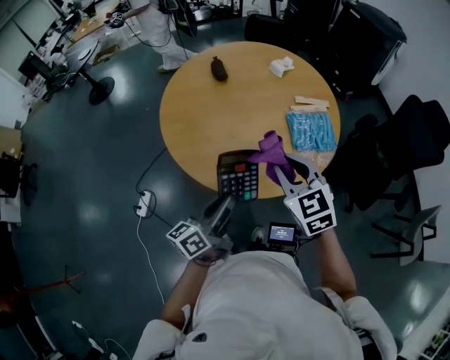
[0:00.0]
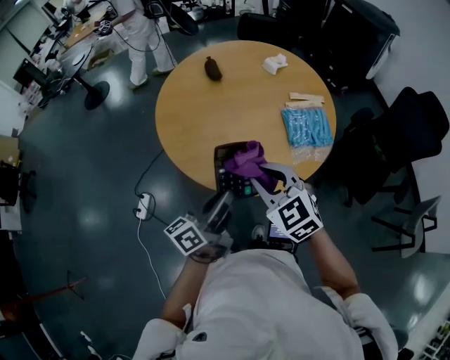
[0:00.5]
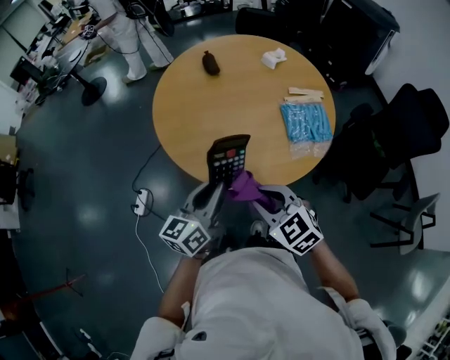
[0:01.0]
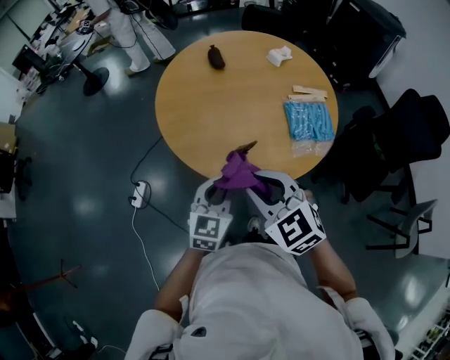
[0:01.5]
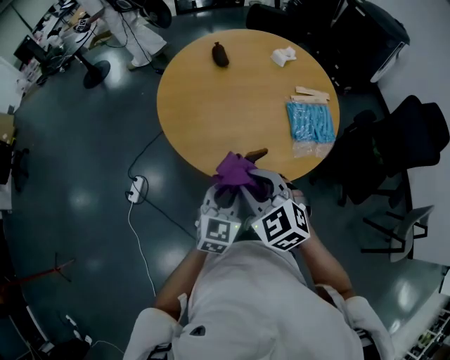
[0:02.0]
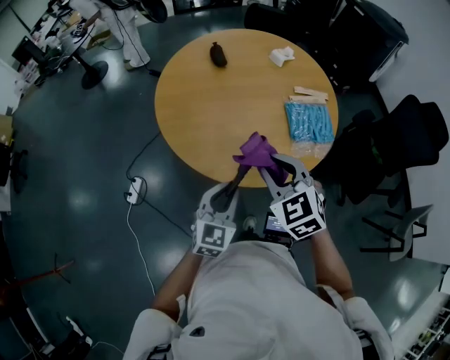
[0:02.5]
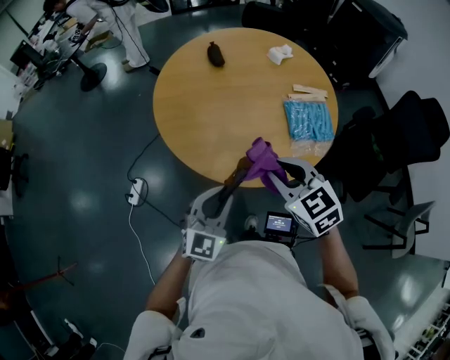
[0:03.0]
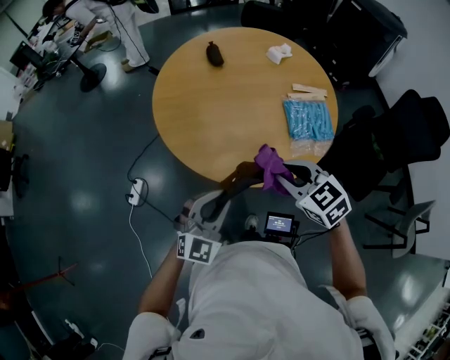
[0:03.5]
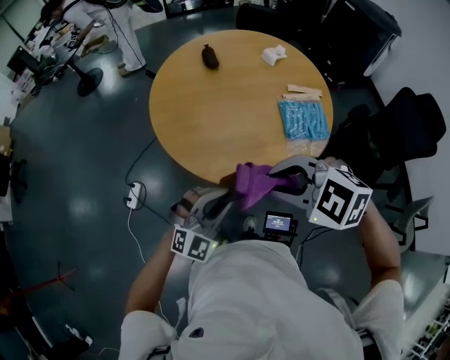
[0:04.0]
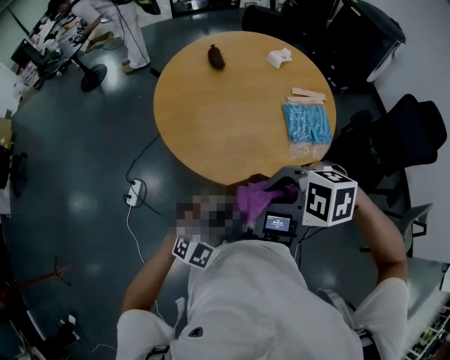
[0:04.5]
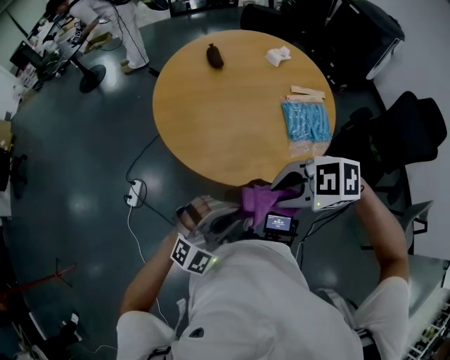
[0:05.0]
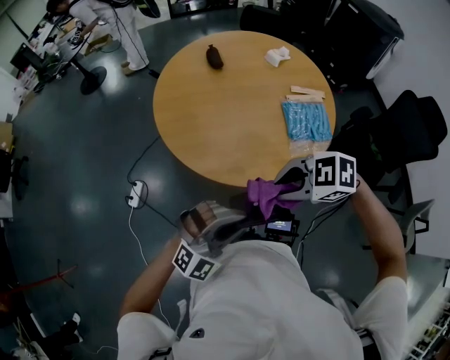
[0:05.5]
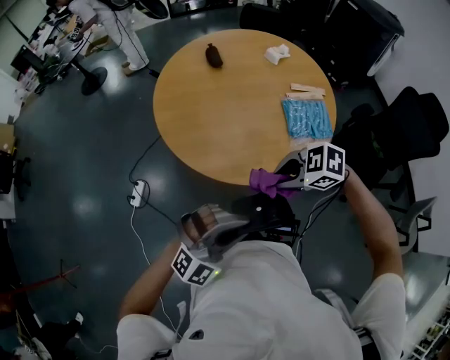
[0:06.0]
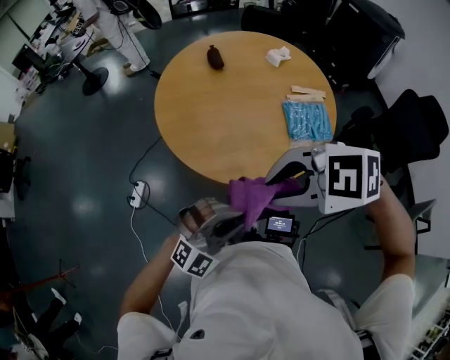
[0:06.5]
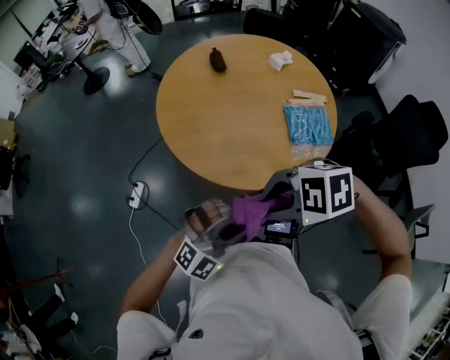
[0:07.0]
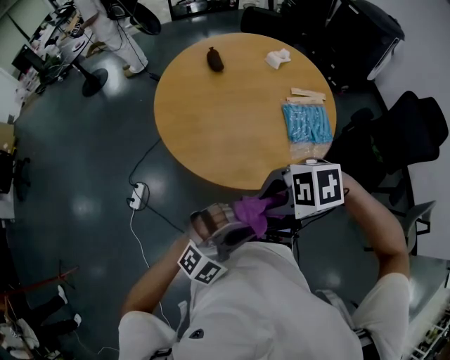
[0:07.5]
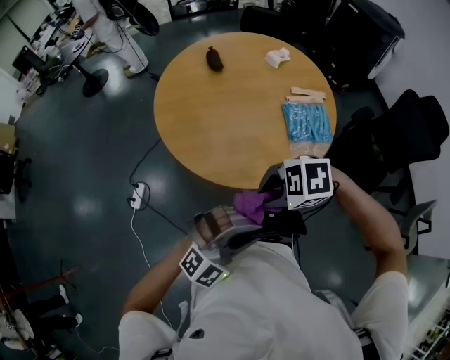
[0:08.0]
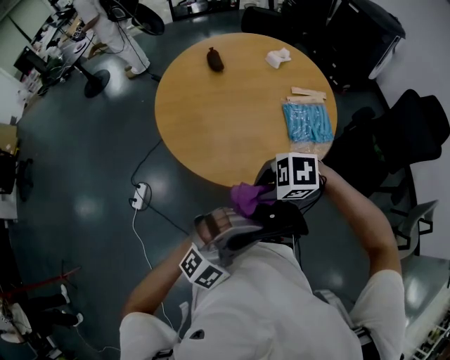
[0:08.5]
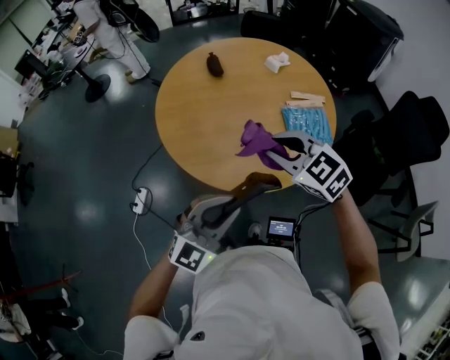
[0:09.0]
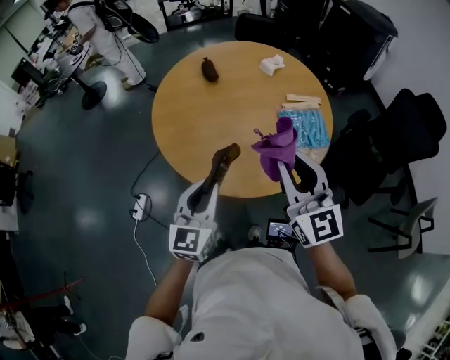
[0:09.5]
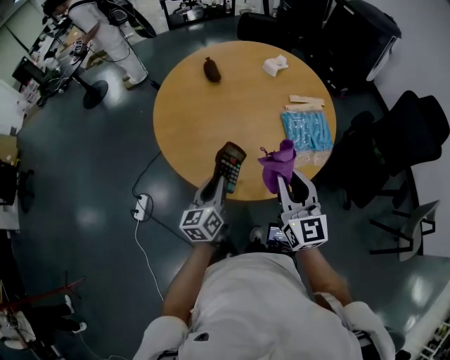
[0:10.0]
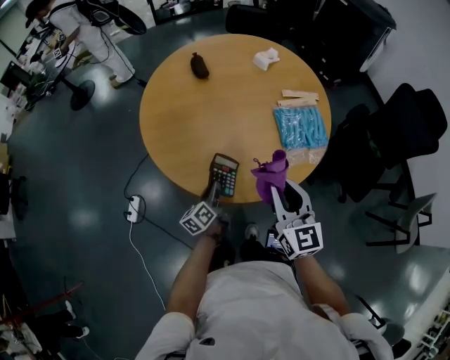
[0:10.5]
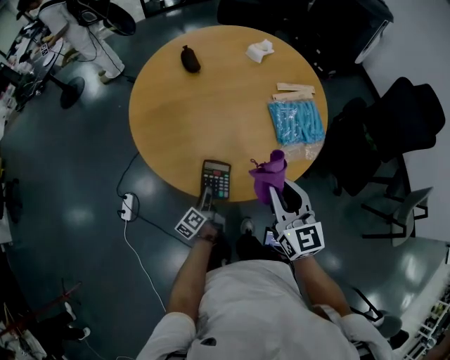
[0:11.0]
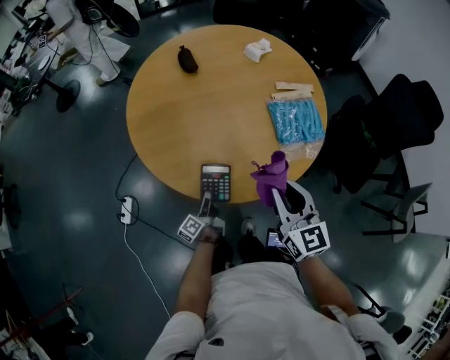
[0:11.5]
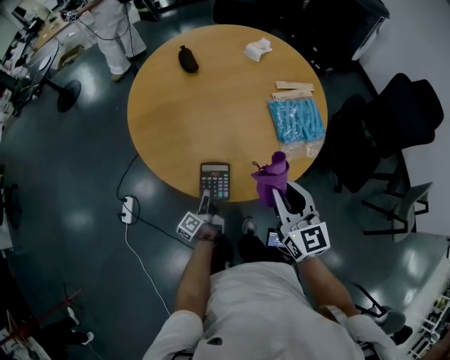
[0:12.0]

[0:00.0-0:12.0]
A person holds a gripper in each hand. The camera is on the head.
0:00.0 to 0:02.0: The left gripper twists approximately 50 degrees clockwise, seen from behind; the right gripper travels to the left and backward by about 10 cm.
0:02.0 to 0:04.0: The right gripper shifts about 10 cm upward and to the right, and changes its angle by roughly 30 degrees; the left gripper swivels some 40 degrees.
0:04.0 to 0:06.0: The right gripper travels downward by some 10 cm, and rotates some 30 degrees. Meanwhile the left gripper changes place by about 10 cm.
0:06.0 to 0:08.0: The right gripper goes upward and returns, some 15 cm each way.
0:08.0 to 0:10.0: The left gripper moves some 25 cm, and rotates around the line of its fingers by roughly 80 degrees, counterclockwise from behind, while the right gripper travels upward and back again, roughly 15 cm each way, and tips its fingers upward by some 50 degrees.
0:10.0 to 0:12.0: The left gripper moves downward, some 25 cm, and rotates around the line of its fingers by some 50 degrees, counterclockwise from behind, while the right gripper travels downward by about 5 cm.

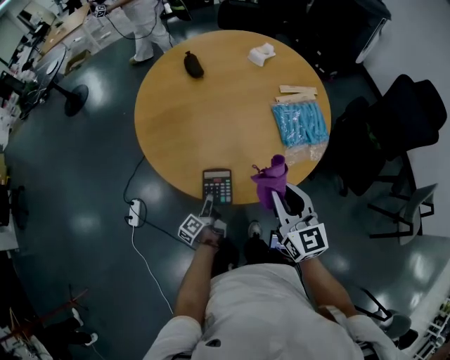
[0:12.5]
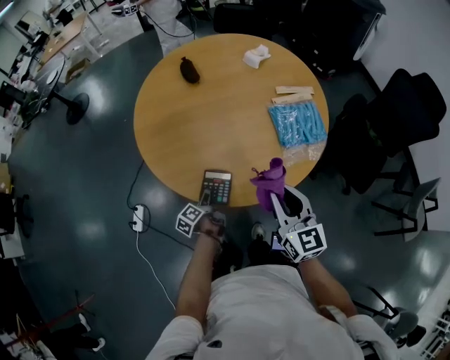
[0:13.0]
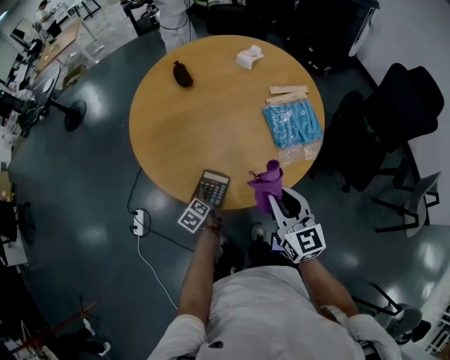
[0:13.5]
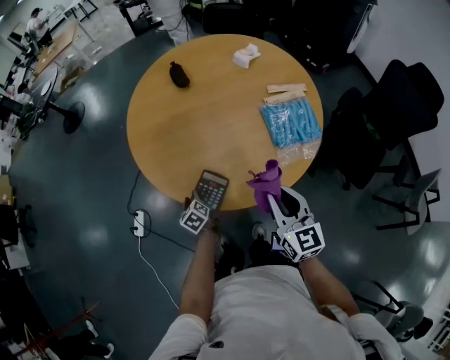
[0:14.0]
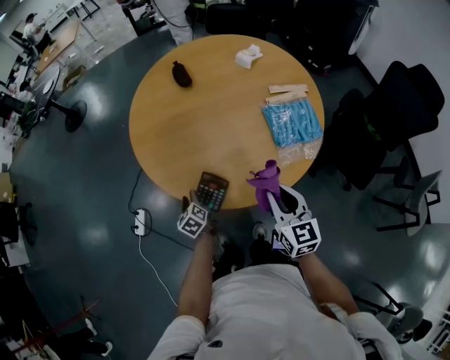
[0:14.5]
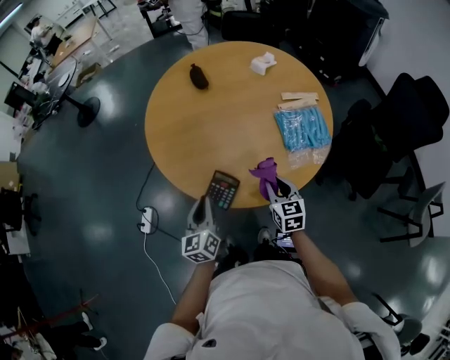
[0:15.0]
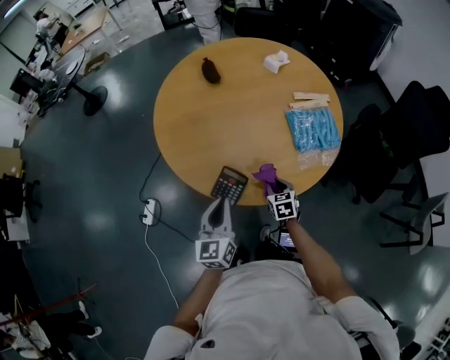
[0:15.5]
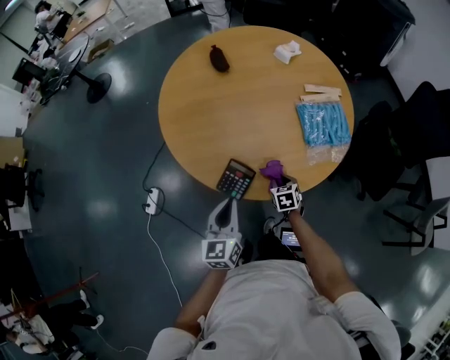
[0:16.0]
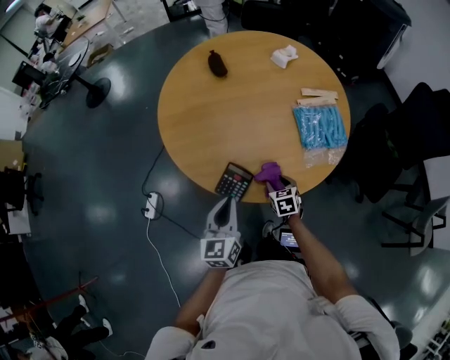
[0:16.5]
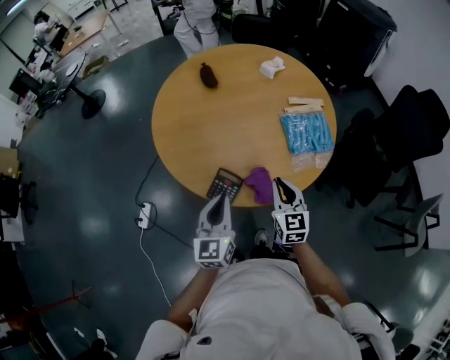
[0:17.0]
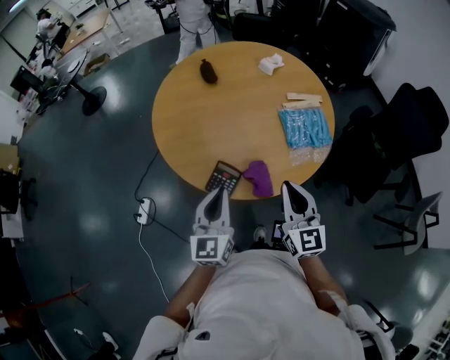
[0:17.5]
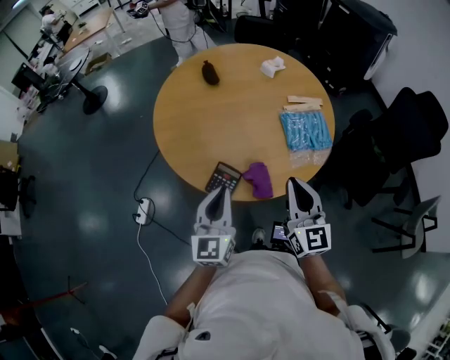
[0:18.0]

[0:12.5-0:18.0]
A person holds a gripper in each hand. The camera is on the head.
0:12.5 to 0:14.5: The right gripper ends up roughly 5 cm from where it was; the left gripper travels to the left by about 5 cm, and swivels roughly 50 degrees.
0:14.5 to 0:16.0: The left gripper travels upward, to the right and backward by about 20 cm, swivels some 40 degrees, and closes its fingers. The right gripper goes some 25 cm downward, and tilts its fingers approximately 40 degrees downward.
0:16.0 to 0:18.0: The right gripper goes about 35 cm upward, points its fingers approximately 50 degrees further upward, and opens, then closes again. The left gripper heads upward, covering some 10 cm.

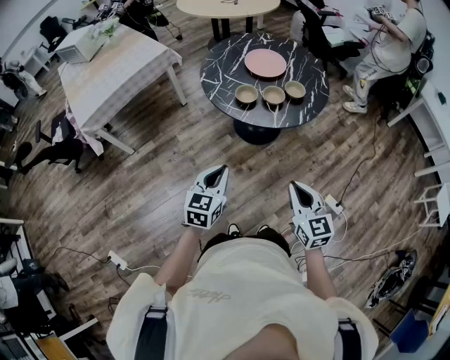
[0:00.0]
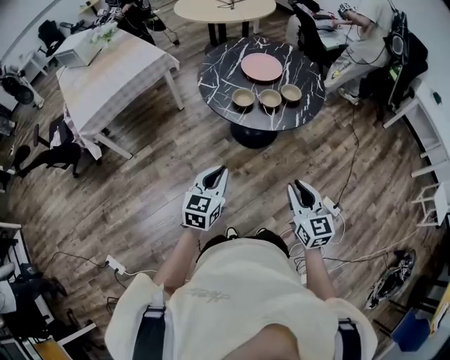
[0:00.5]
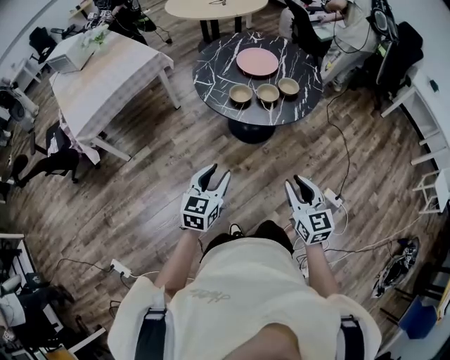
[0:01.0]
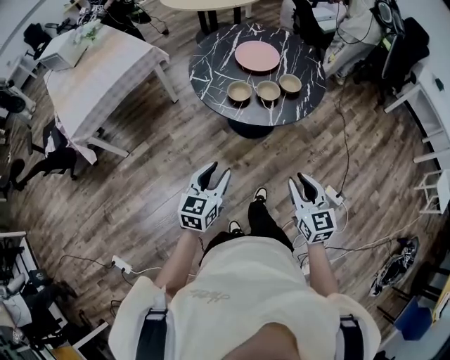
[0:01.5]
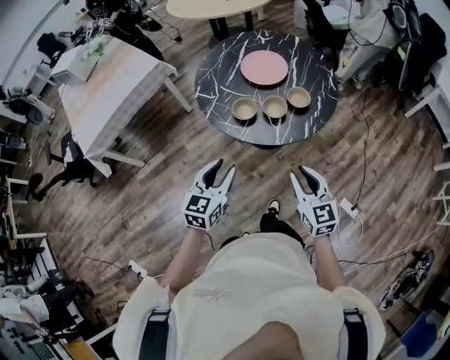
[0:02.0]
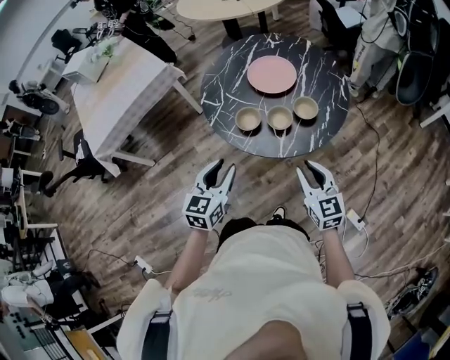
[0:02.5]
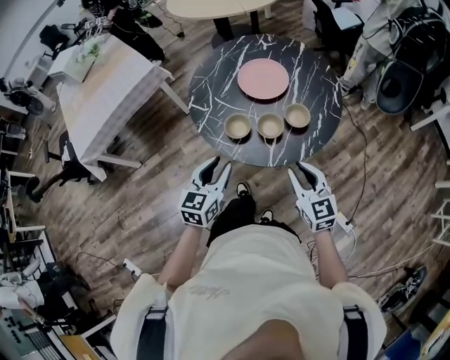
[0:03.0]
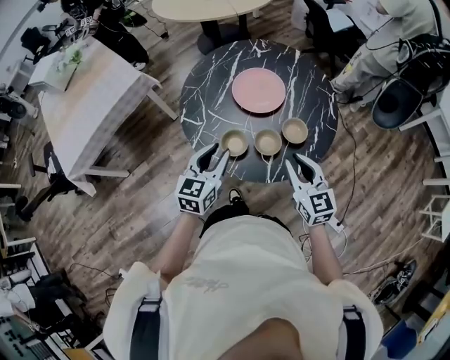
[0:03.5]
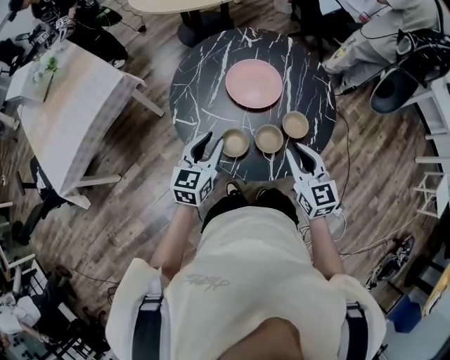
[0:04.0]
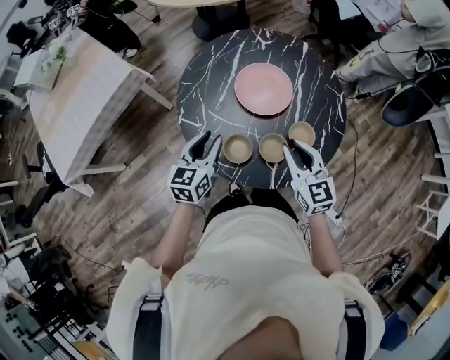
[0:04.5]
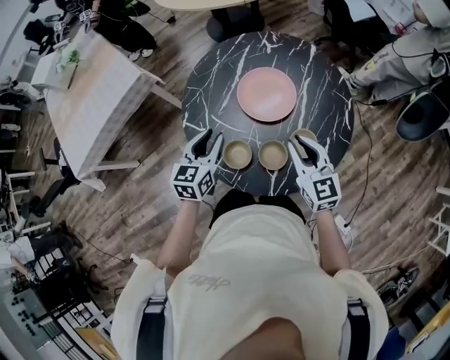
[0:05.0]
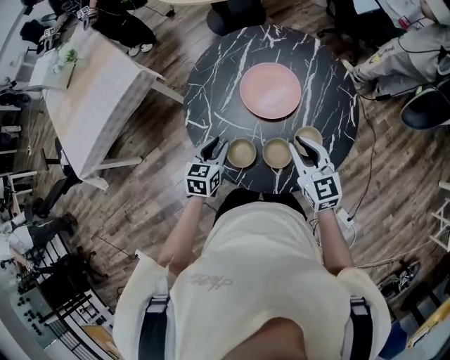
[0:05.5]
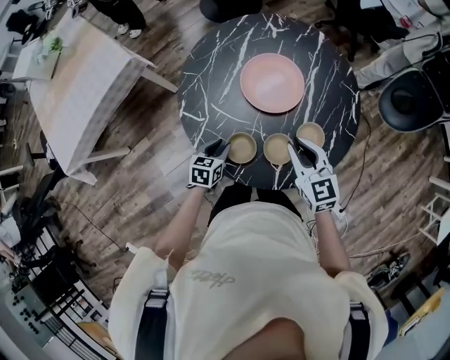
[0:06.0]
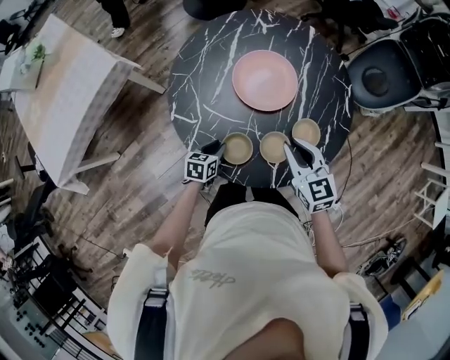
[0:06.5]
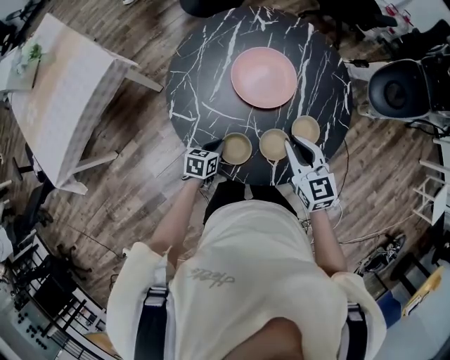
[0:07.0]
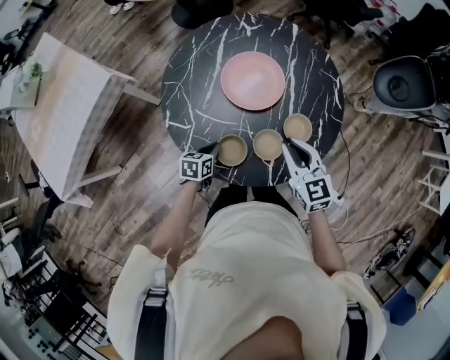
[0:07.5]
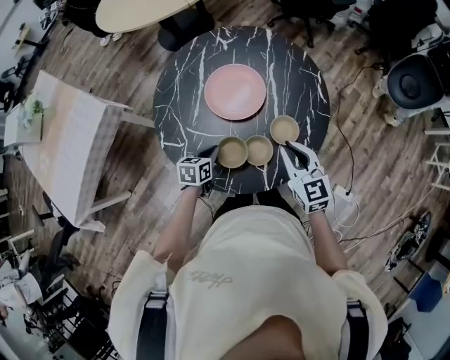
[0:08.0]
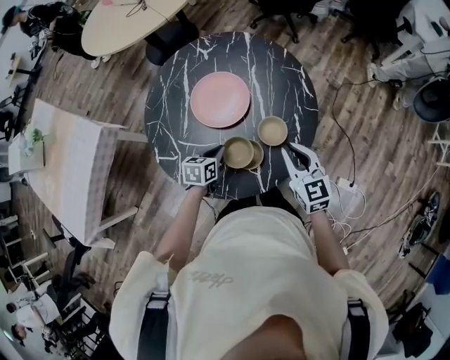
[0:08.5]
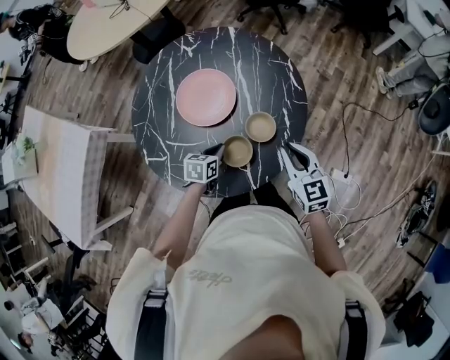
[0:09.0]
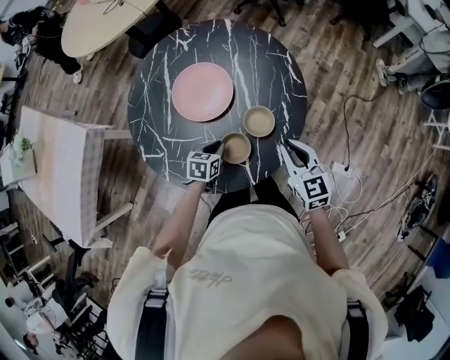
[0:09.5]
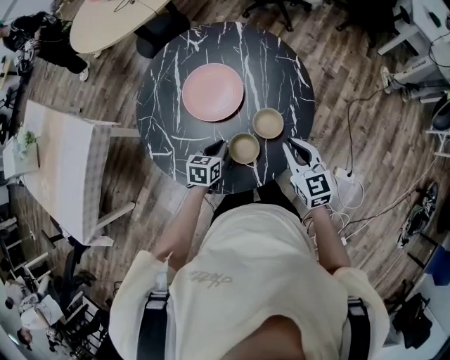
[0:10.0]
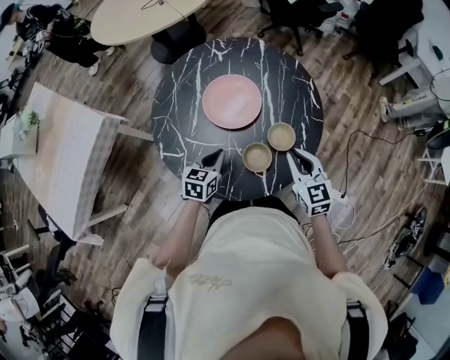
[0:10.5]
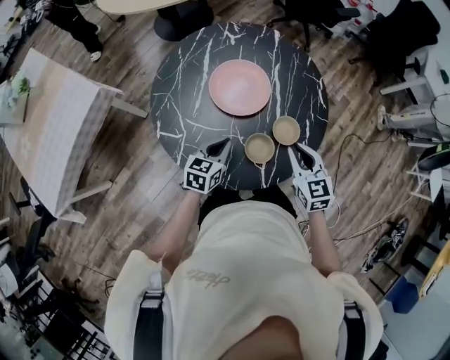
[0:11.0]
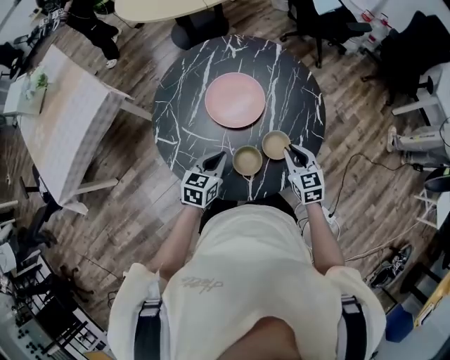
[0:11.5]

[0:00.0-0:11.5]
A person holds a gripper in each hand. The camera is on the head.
0:00.0 to 0:02.0: Both grippers move forward, approximately 15 cm. The right gripper opens. Meanwhile the left gripper opens.
0:02.0 to 0:04.0: Both grippers move forward, about 25 cm.
0:04.0 to 0:06.0: The right gripper travels forward and downward by approximately 10 cm. Meanwhile the left gripper travels downward by approximately 20 cm, and rotates some 30 degrees.
0:06.0 to 0:07.5: The left gripper closes.
0:07.5 to 0:09.5: The right gripper is displaced to the right by about 15 cm. Meanwhile the left gripper shifts approximately 15 cm to the right and forward.
0:09.5 to 0:11.5: The left gripper travels upward by some 10 cm, and changes its angle by some 20 degrees. Meanwhile the right gripper heads forward, covering roughly 5 cm.
